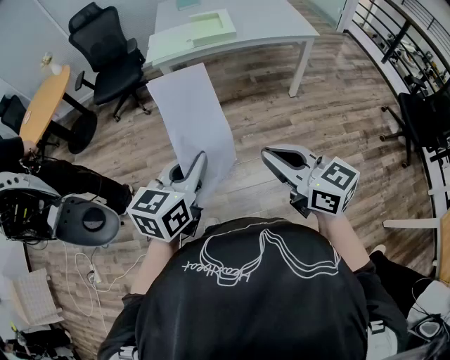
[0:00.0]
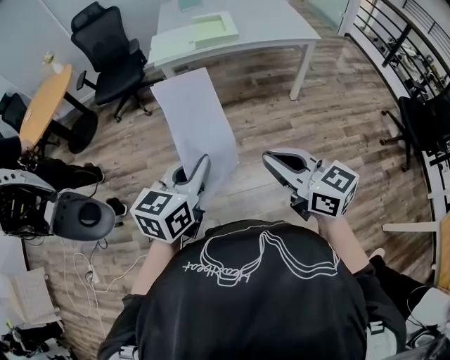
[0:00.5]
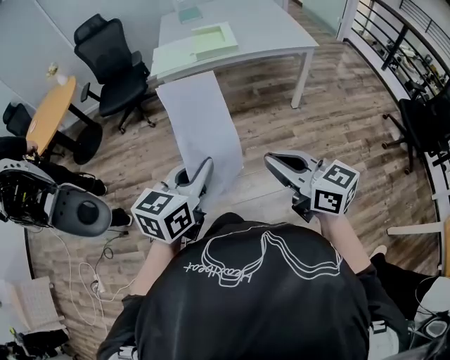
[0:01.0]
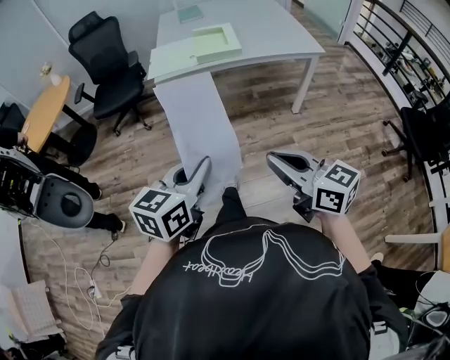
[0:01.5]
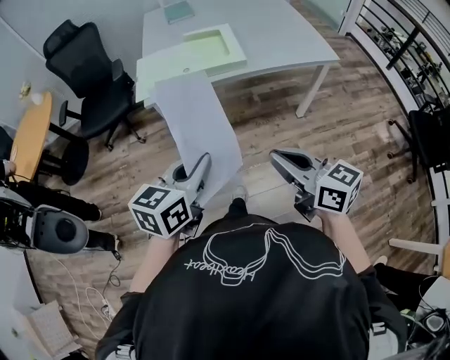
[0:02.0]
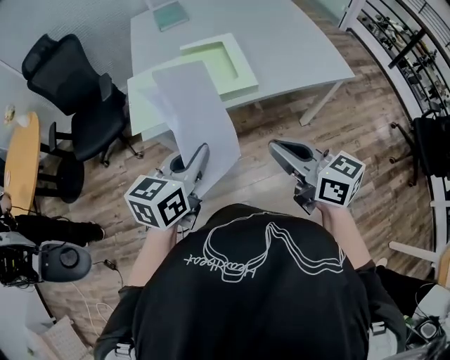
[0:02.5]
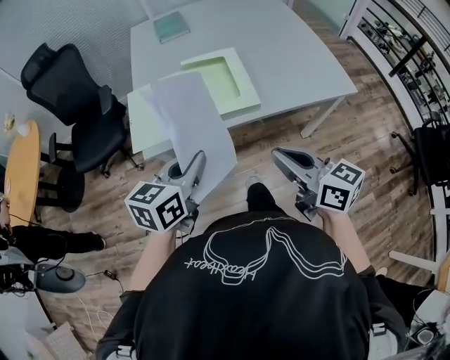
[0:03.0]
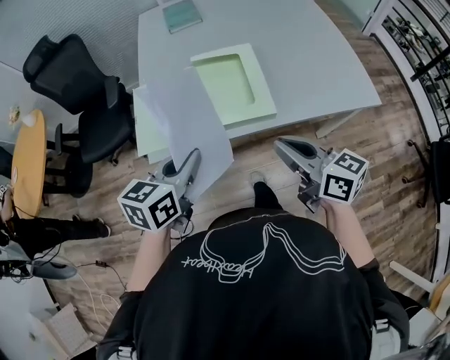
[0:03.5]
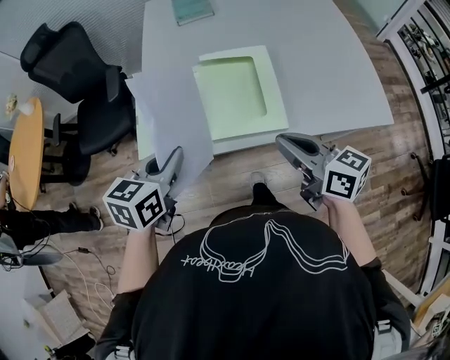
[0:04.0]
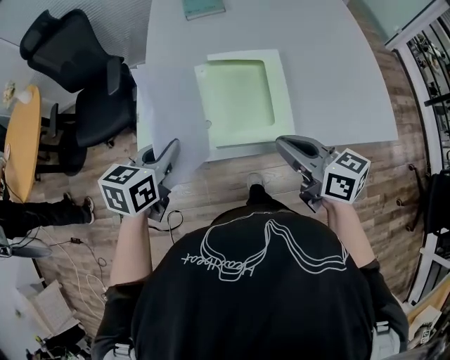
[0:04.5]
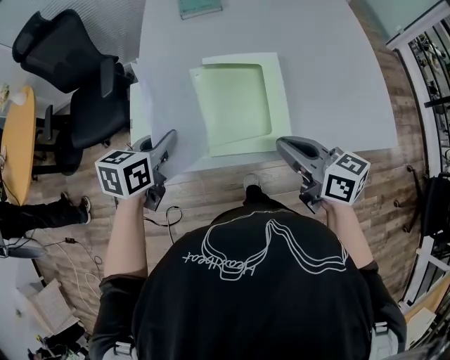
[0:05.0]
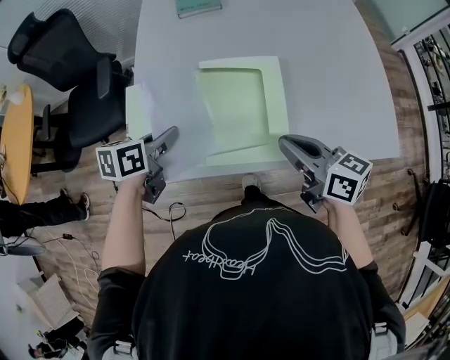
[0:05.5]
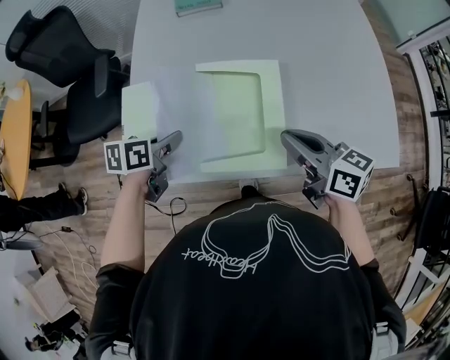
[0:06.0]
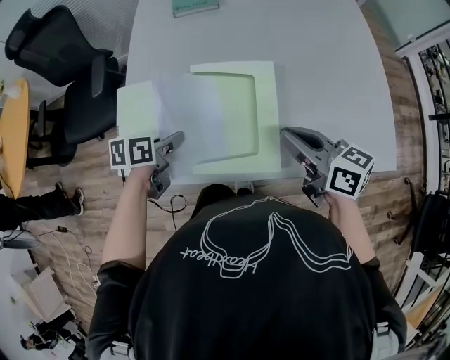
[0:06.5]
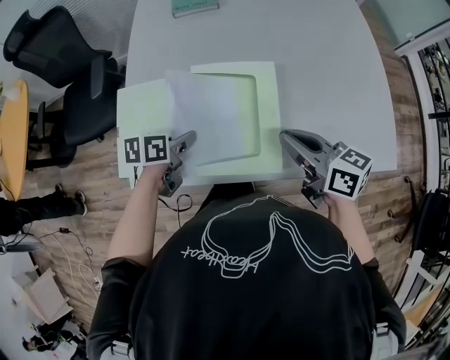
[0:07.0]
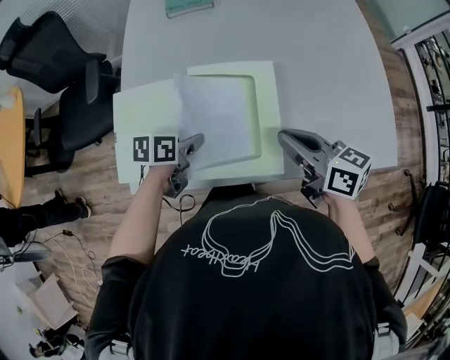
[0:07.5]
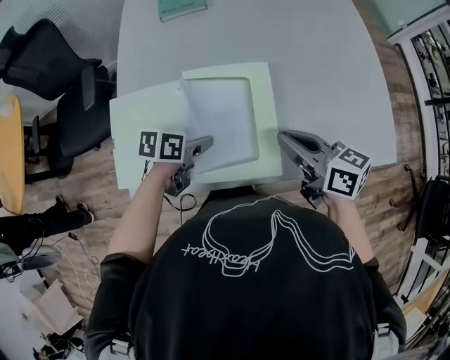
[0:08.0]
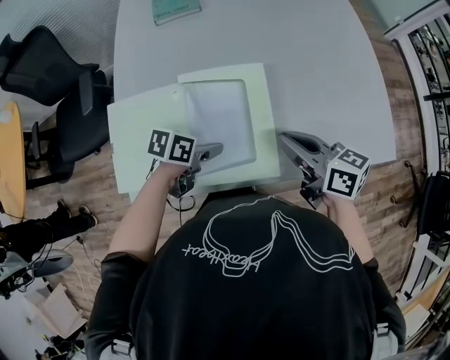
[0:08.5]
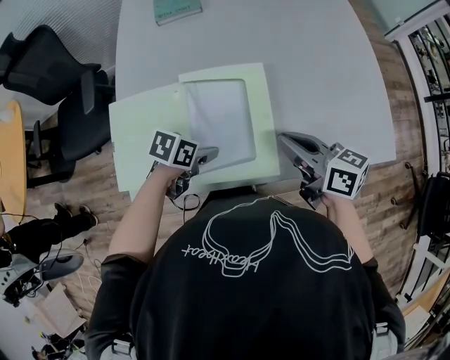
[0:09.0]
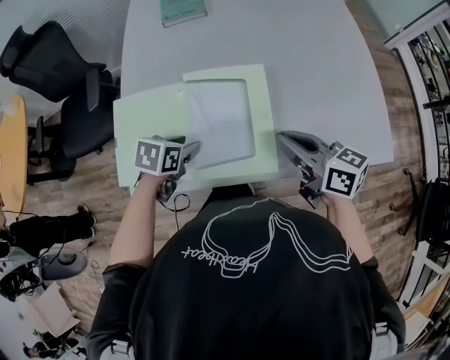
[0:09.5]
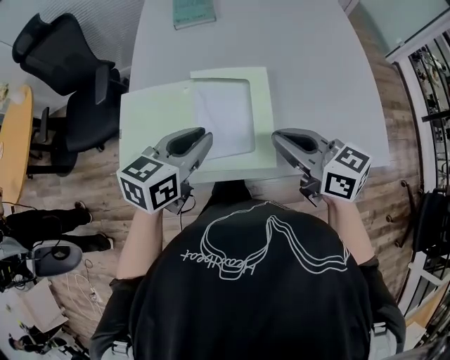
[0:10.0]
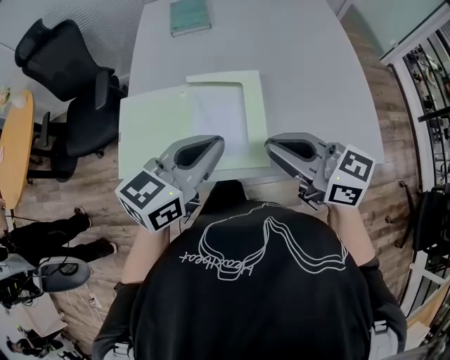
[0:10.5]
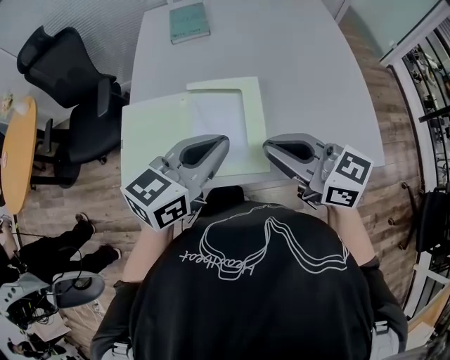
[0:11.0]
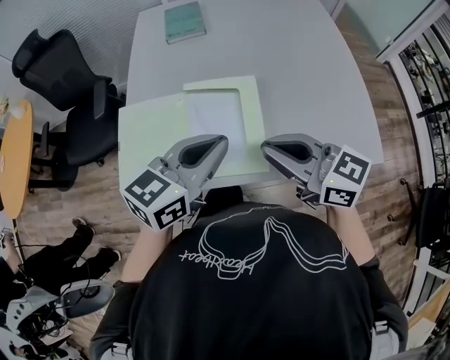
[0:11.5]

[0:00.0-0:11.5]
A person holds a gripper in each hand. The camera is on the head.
0:00.0 to 0:02.0: The grippers both shift forward by approximately 30 cm.
0:02.0 to 0:04.0: Both grippers are carried forward, about 40 cm.
0:04.0 to 0:06.0: The right gripper is displaced forward by roughly 15 cm. The left gripper goes about 20 cm forward and downward, and rotates some 30 degrees.
0:06.0 to 0:07.5: The left gripper moves to the right and downward, roughly 10 cm.
0:07.5 to 0:09.5: The left gripper changes its angle by some 20 degrees, and opens its fingers.
0:09.5 to 0:11.5: The right gripper is displaced upward by about 10 cm, and rotates some 20 degrees. The left gripper is displaced upward and to the right by roughly 25 cm, tips its fingers upward by some 40 degrees, and closes its fingers.

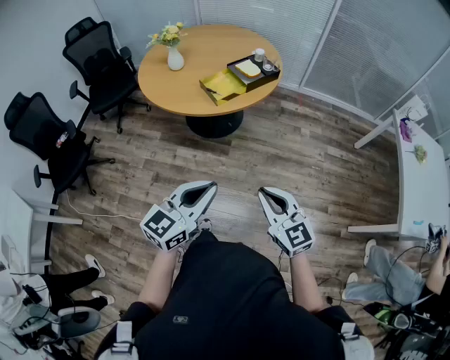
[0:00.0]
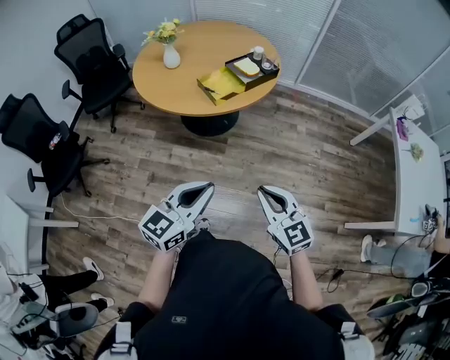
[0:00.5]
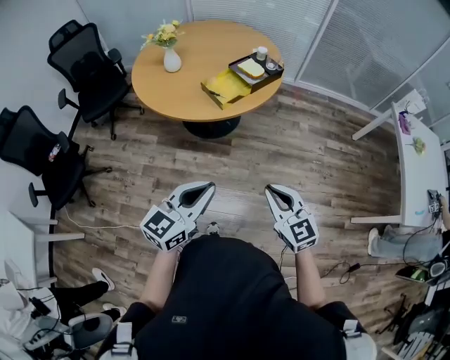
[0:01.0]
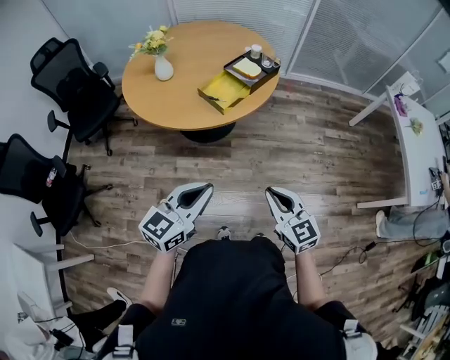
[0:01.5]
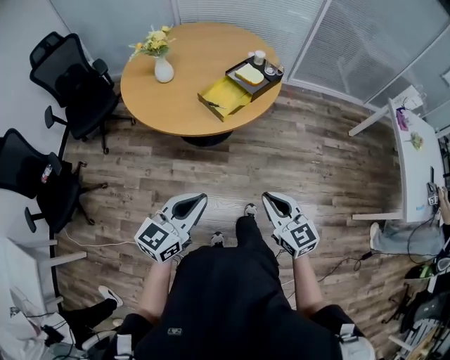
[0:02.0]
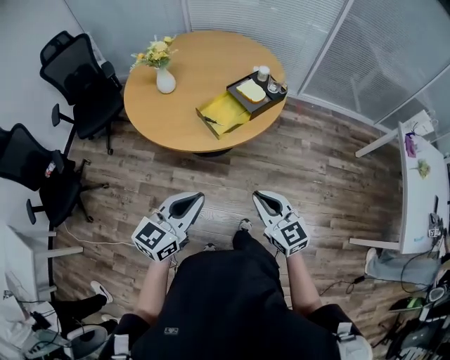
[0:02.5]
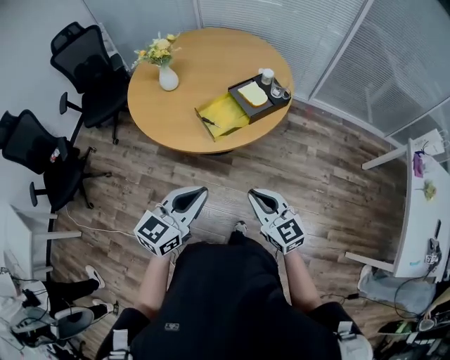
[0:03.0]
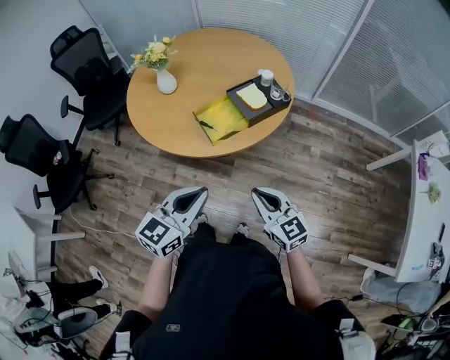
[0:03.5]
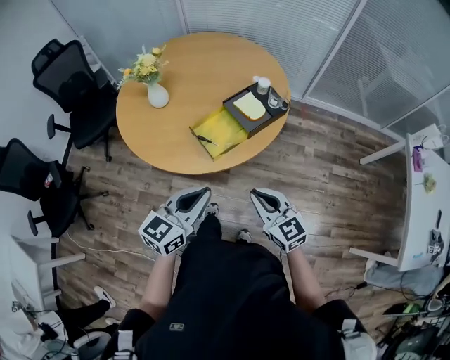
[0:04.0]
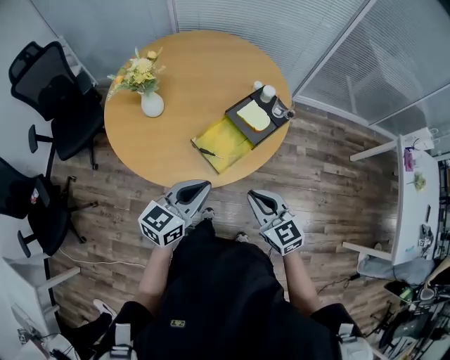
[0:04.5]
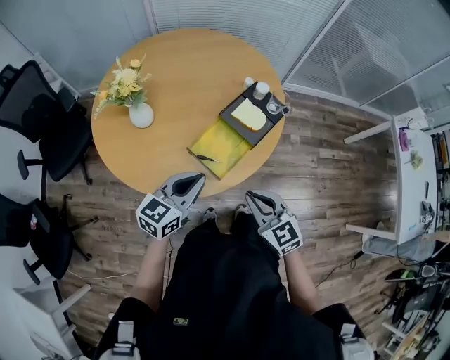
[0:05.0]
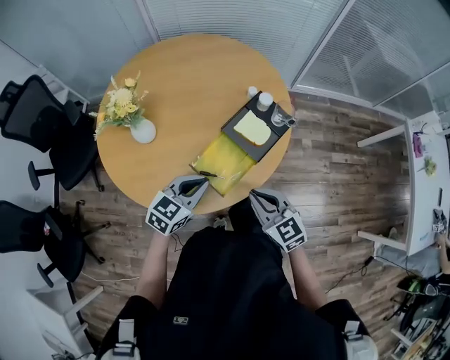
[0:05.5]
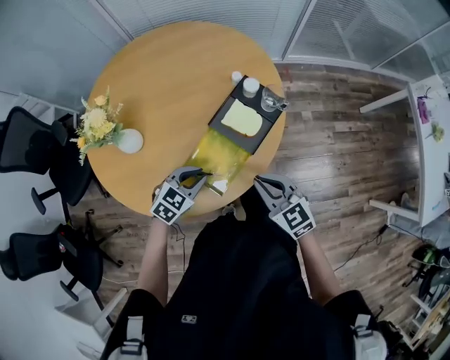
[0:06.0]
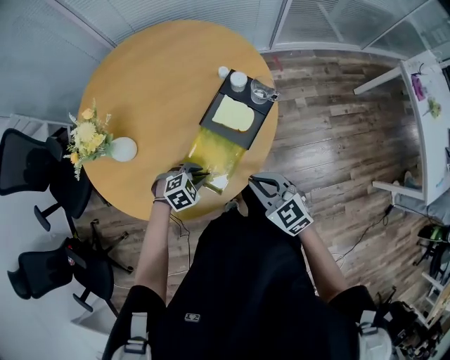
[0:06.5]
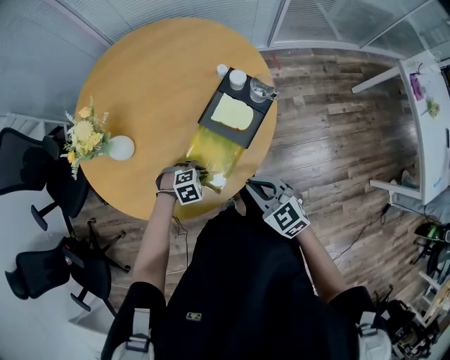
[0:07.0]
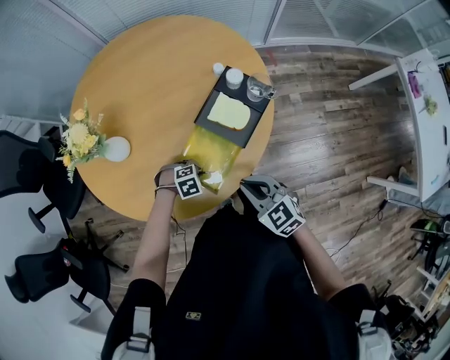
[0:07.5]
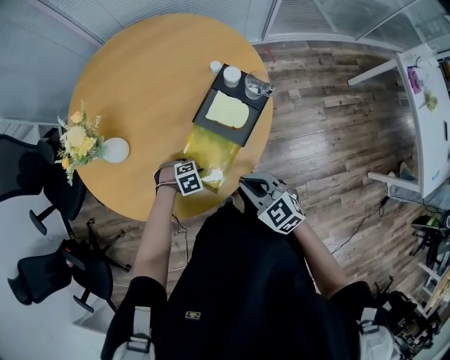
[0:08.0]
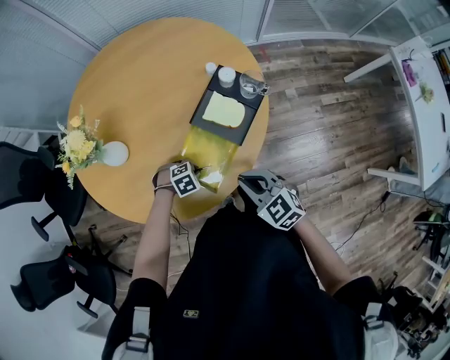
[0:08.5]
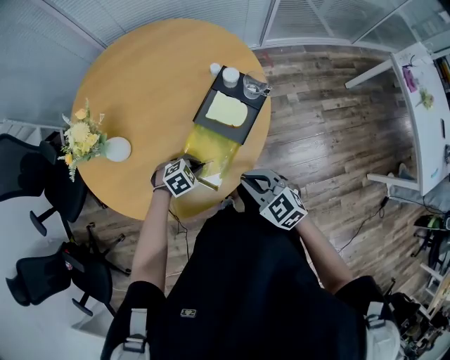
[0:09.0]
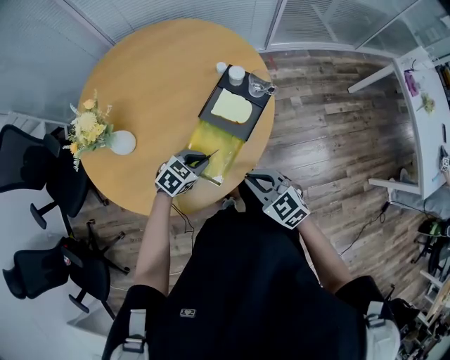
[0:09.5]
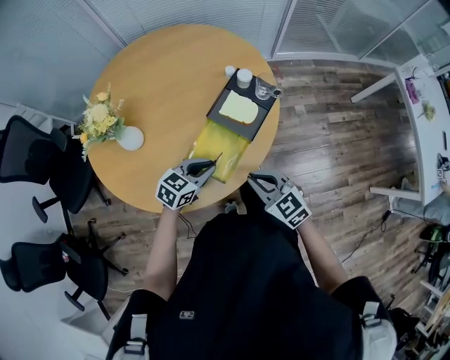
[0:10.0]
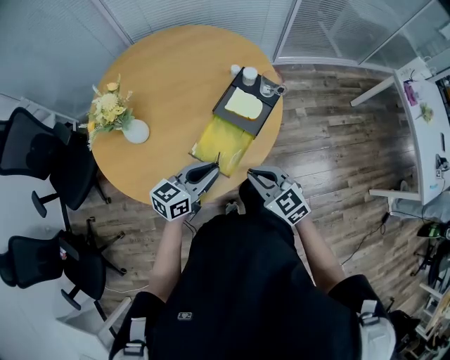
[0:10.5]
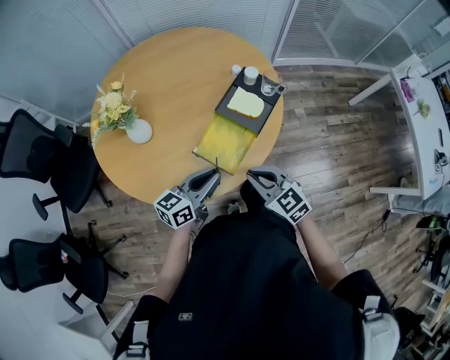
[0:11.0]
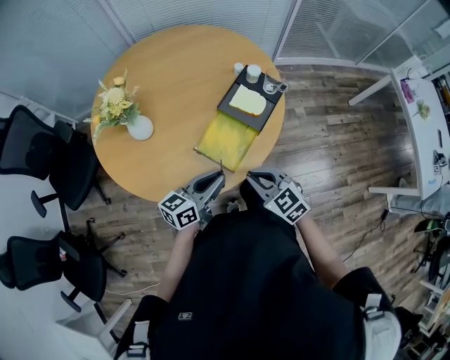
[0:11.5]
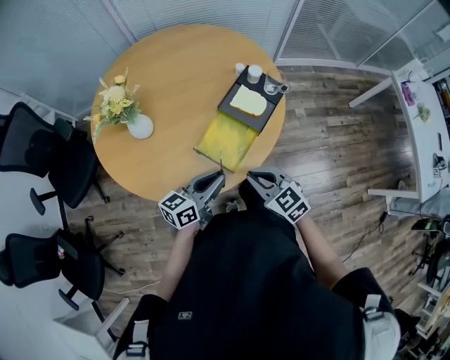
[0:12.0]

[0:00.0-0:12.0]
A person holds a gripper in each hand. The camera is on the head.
0:00.0 to 0:02.0: The right gripper travels forward, to the left and downward by some 15 cm. Meanwhile the left gripper goes some 20 cm to the left and forward.
0:02.0 to 0:04.0: The right gripper is displaced forward by about 25 cm; the left gripper is displaced forward and to the right by about 25 cm.
0:04.0 to 0:06.0: The left gripper heads forward and downward, covering some 30 cm, and tips its fingers downward by some 30 degrees. The right gripper goes some 20 cm forward.
0:06.0 to 0:08.0: The left gripper shifts roughly 15 cm downward, and points its fingers roughly 30 degrees further downward.
0:08.0 to 0:10.0: The left gripper travels upward by about 15 cm, and points its fingers roughly 40 degrees further upward.
0:10.0 to 0:12.0: The right gripper moves roughly 5 cm. Meanwhile the left gripper shifts approximately 10 cm backward and upward, and rotates roughly 40 degrees.

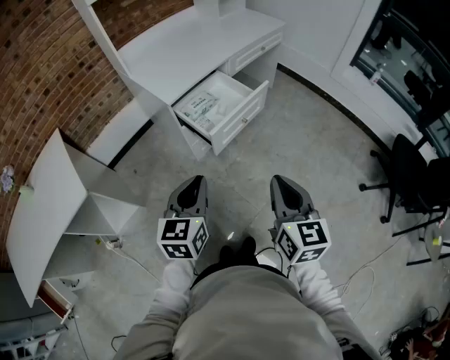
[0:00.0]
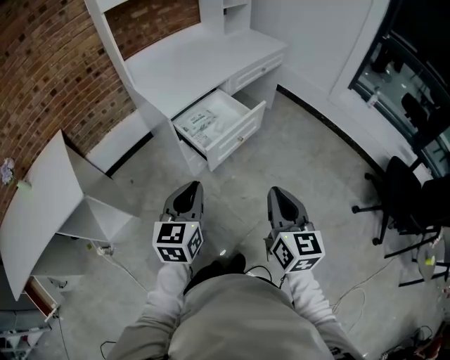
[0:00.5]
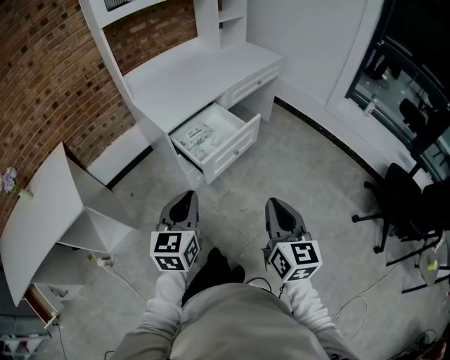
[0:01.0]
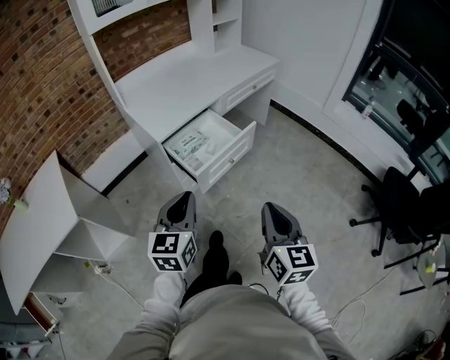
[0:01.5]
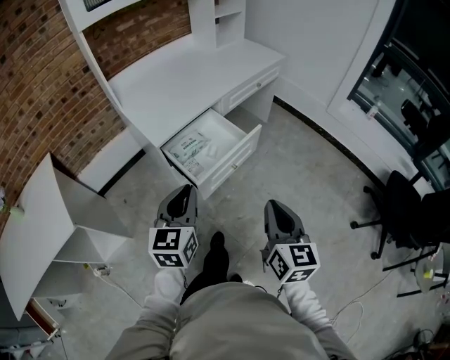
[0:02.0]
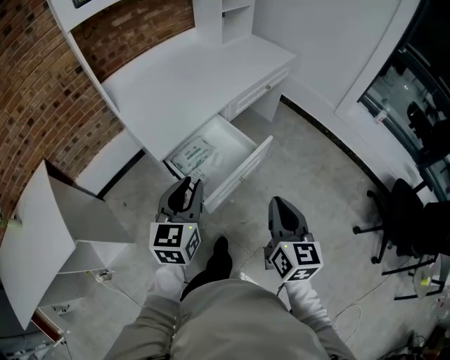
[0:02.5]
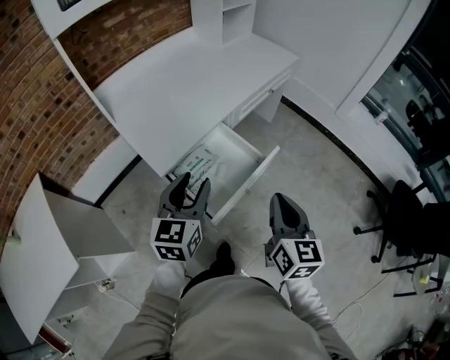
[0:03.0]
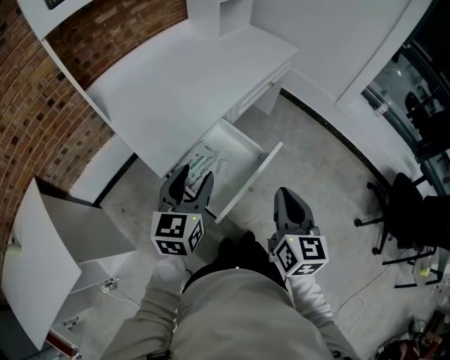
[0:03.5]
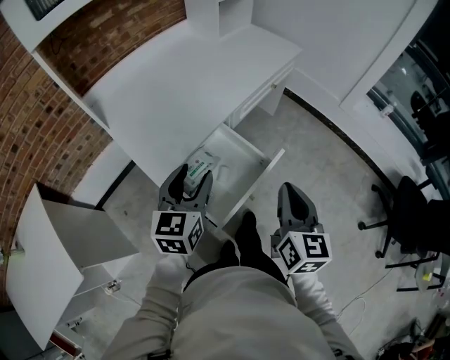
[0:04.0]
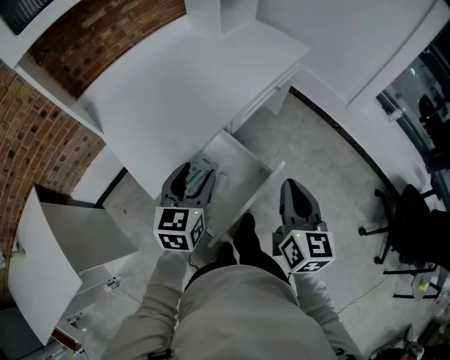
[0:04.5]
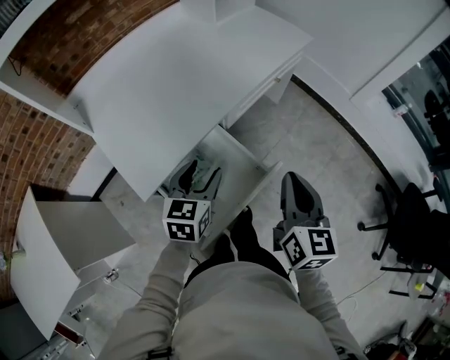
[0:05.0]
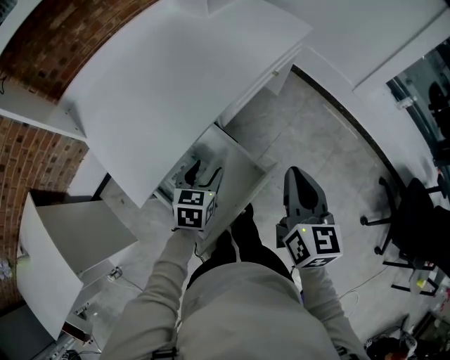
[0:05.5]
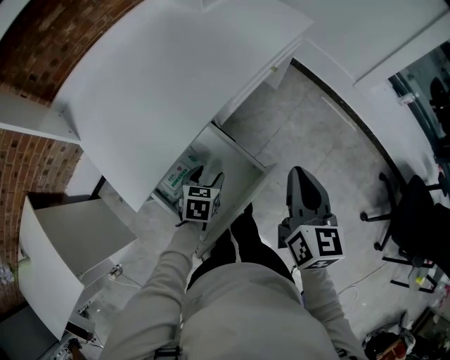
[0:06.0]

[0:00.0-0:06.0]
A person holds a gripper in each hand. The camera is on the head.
0:00.0 to 0:02.0: Both grippers travel together forward, some 10 cm.
0:02.0 to 0:04.0: The grippers both shift forward by approximately 25 cm. The left gripper opens.
0:04.0 to 0:06.0: The left gripper goes some 30 cm downward and forward, and tips its fingers downward by roughly 30 degrees. Meanwhile the right gripper is displaced forward by about 15 cm.
